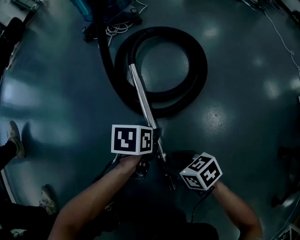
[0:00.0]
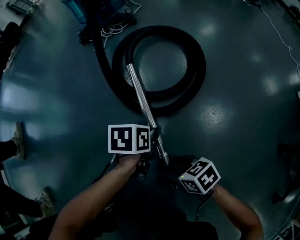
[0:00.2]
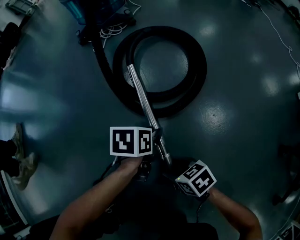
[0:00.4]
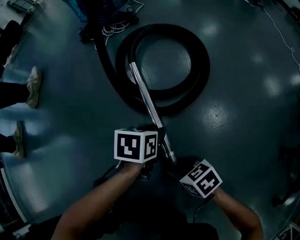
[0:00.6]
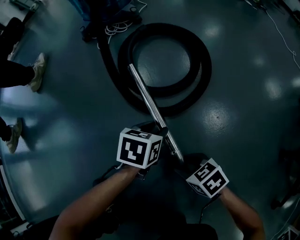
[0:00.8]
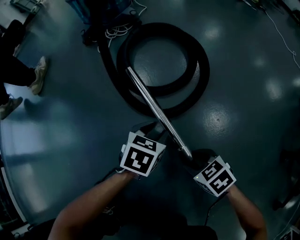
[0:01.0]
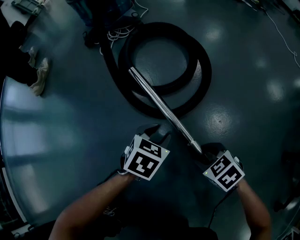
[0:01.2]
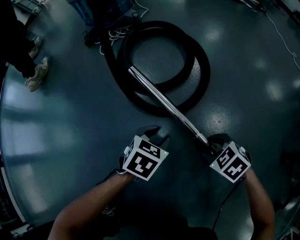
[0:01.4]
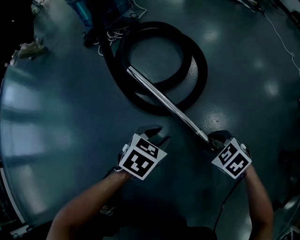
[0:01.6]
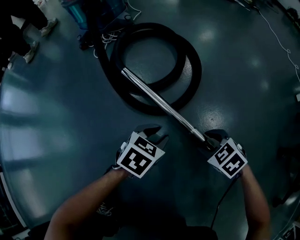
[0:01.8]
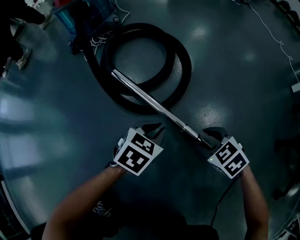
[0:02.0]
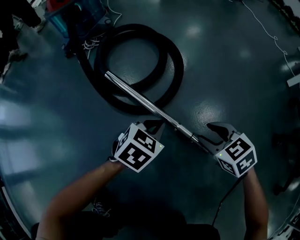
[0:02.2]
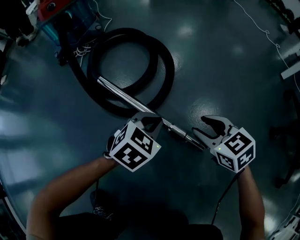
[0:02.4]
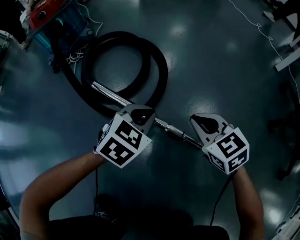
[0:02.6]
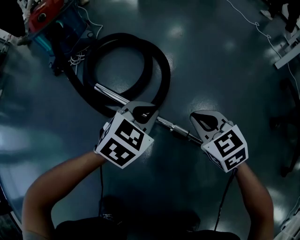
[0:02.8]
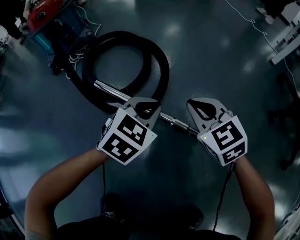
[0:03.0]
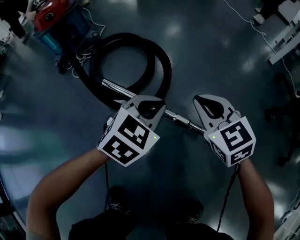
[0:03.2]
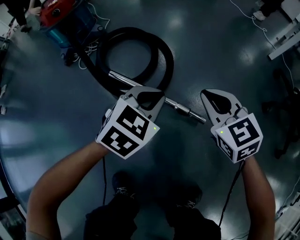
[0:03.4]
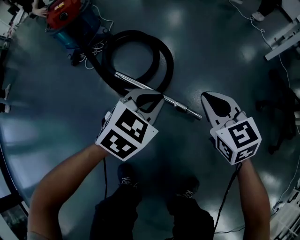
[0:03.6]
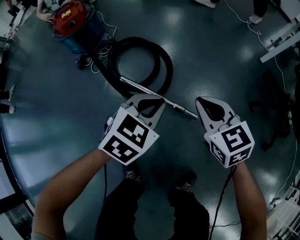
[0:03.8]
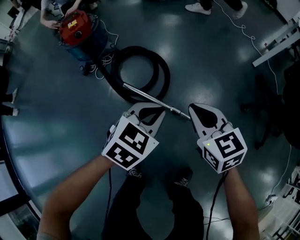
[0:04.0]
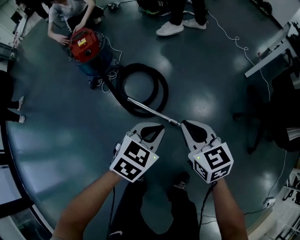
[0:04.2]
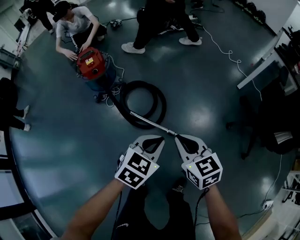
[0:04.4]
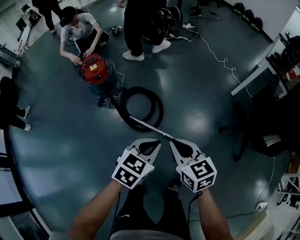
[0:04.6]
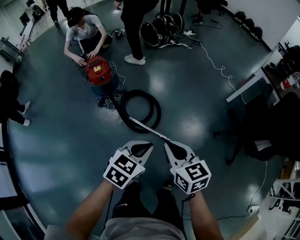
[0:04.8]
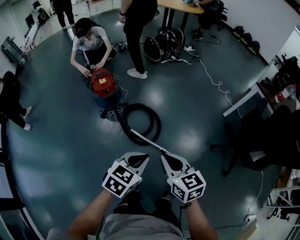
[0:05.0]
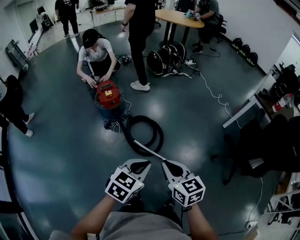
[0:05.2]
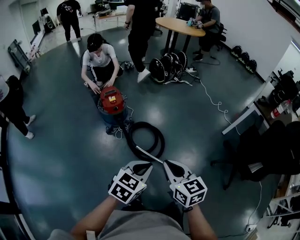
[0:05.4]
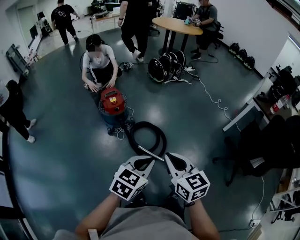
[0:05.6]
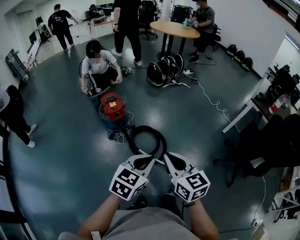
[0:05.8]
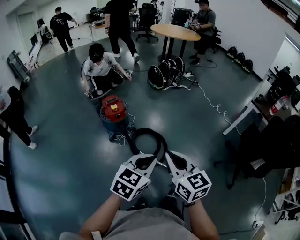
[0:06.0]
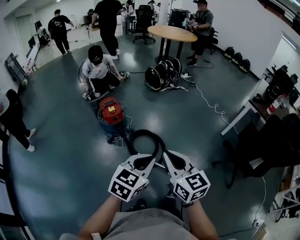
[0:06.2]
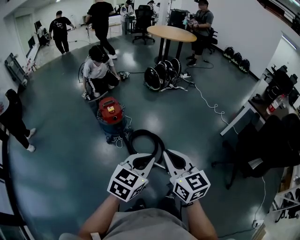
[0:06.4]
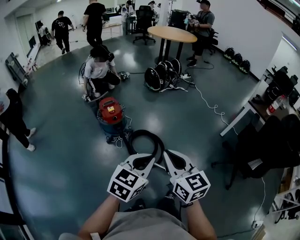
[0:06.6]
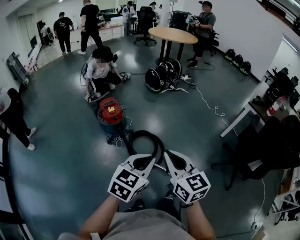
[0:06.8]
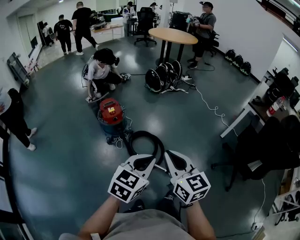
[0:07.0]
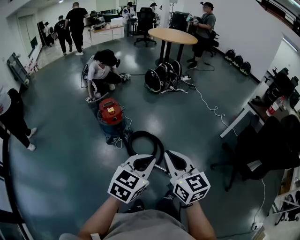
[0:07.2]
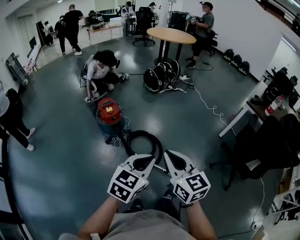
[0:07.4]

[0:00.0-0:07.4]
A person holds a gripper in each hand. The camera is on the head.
0:00.0 to 0:01.4: The right gripper shifts by approximately 15 cm, and rotates roughly 40 degrees. Meanwhile the left gripper swivels roughly 40 degrees.
0:01.4 to 0:03.0: The two grippers go roughly 10 cm upward. The right gripper angles its fingers upward, by approximately 30 degrees, and closes up. The left gripper rotates about 40 degrees, and closes up.
0:03.0 to 0:04.4: Both grippers travel together upward, roughly 60 cm. The right gripper rotates about 20 degrees.
0:04.4 to 0:06.0: Both grippers move upward and to the left, roughly 35 cm.
0:06.0 to 0:07.4: The grippers stay close to where they were, moving slightly.

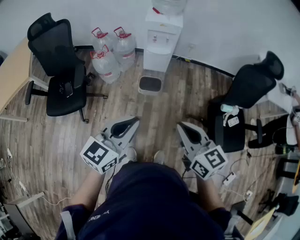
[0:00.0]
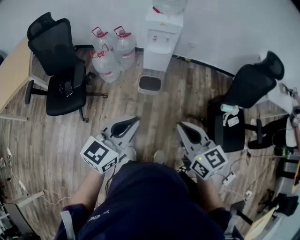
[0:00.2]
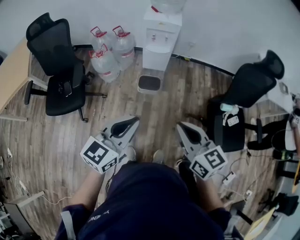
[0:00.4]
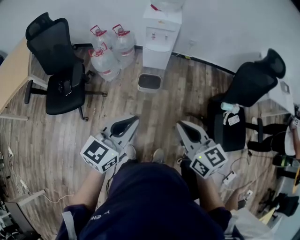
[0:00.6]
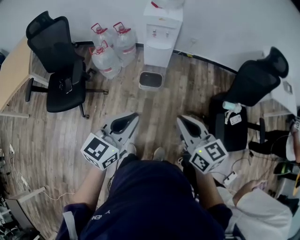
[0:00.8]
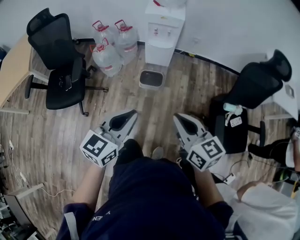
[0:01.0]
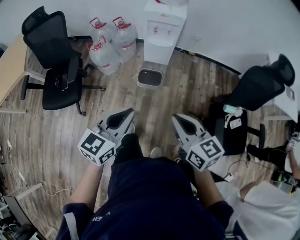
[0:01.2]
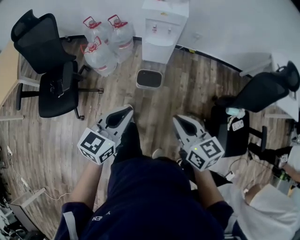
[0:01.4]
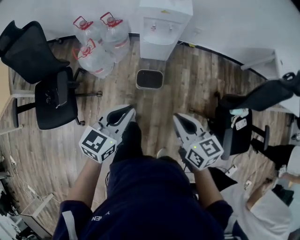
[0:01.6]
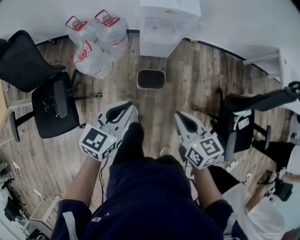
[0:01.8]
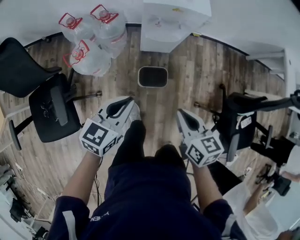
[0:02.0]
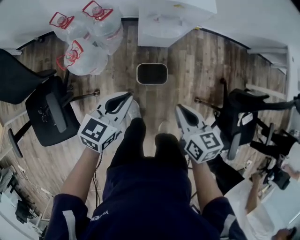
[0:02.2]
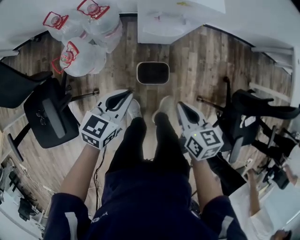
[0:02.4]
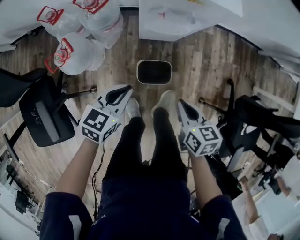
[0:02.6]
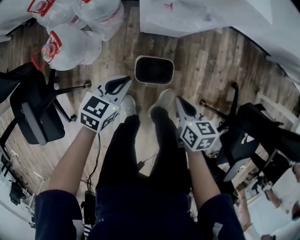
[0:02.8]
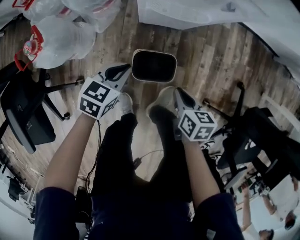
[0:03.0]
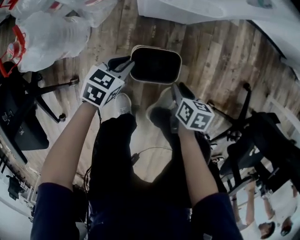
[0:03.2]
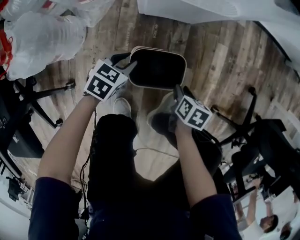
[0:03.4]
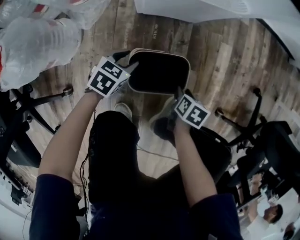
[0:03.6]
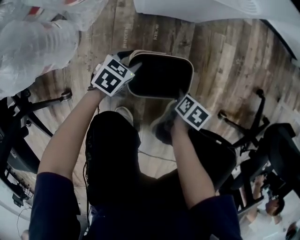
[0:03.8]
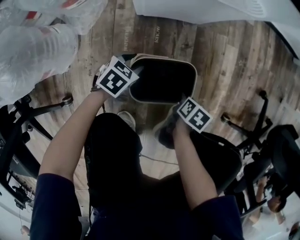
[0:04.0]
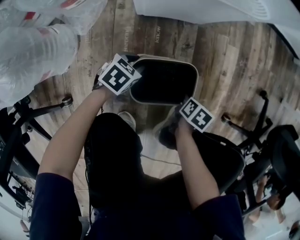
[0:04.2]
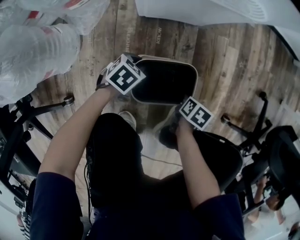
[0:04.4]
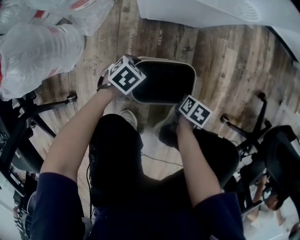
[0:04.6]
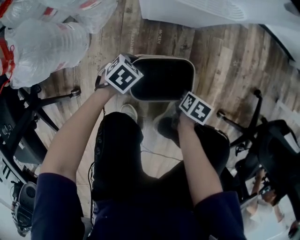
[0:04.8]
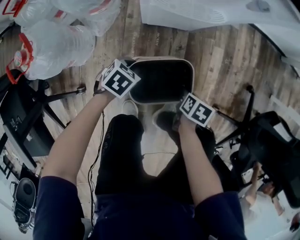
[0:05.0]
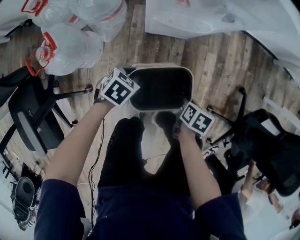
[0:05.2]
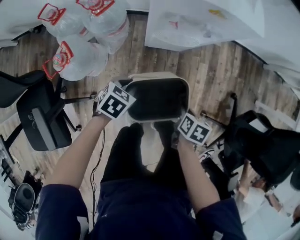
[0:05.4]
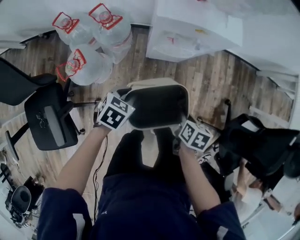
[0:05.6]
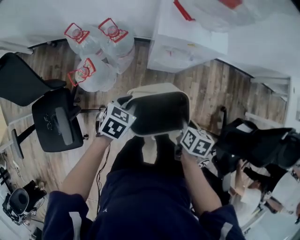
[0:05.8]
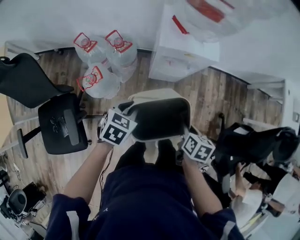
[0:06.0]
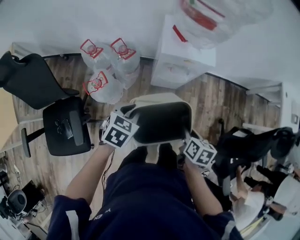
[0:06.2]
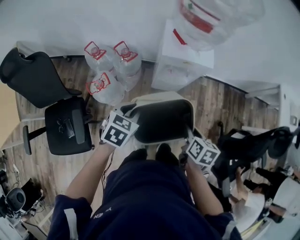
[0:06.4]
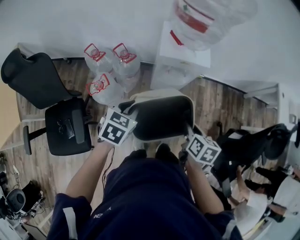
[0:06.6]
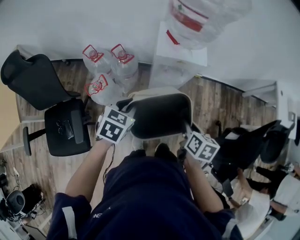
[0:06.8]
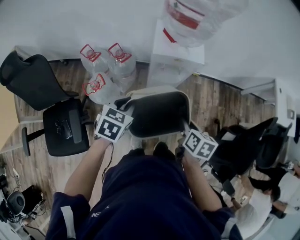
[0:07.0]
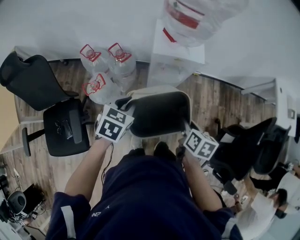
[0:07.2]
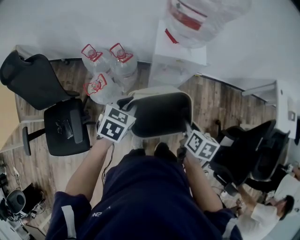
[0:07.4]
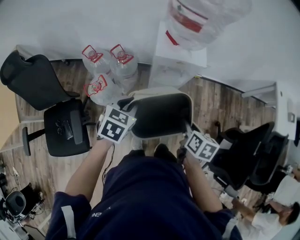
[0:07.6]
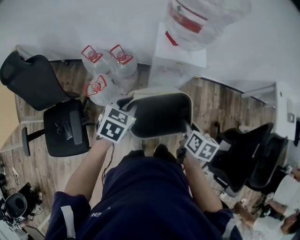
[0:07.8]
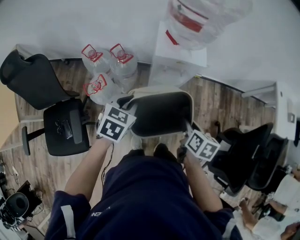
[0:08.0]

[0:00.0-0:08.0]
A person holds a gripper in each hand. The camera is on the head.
0:00.0 to 0:01.6: The grippers both shift forward and downward by some 30 cm.
0:01.6 to 0:03.2: Both grippers move downward and forward, some 70 cm. The right gripper angles its fingers downward, by roughly 40 degrees, and opens up. The left gripper turns by roughly 30 degrees.
0:03.2 to 0:04.8: Both grippers move downward, roughly 15 cm. The right gripper rotates approximately 20 degrees. The left gripper swivels about 20 degrees, and opens, then closes once more.
0:04.8 to 0:06.4: The grippers both shift upward by approximately 70 cm. The left gripper changes its angle by about 30 degrees. The right gripper swivels approximately 30 degrees.
0:06.4 to 0:08.0: The left gripper changes place by some 5 cm.

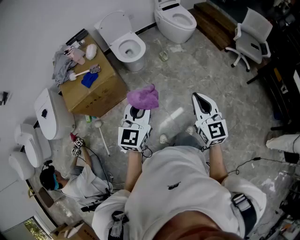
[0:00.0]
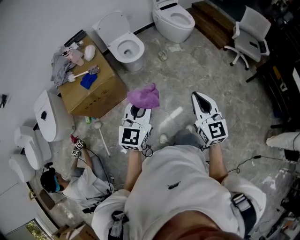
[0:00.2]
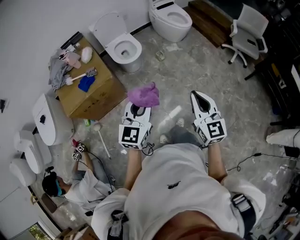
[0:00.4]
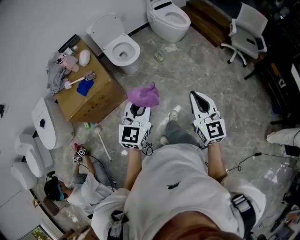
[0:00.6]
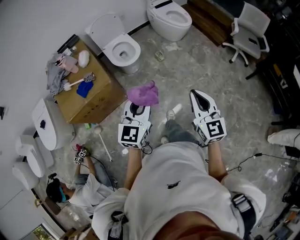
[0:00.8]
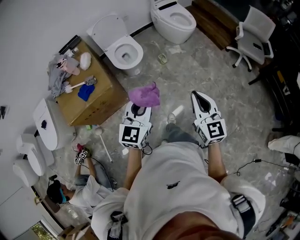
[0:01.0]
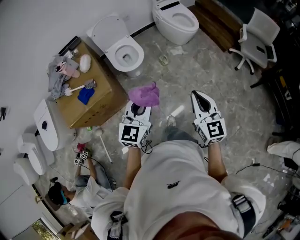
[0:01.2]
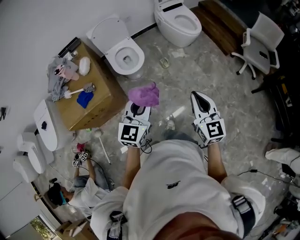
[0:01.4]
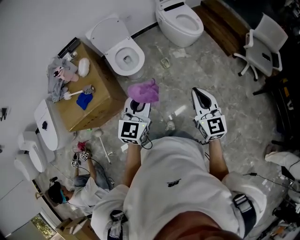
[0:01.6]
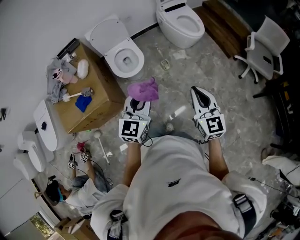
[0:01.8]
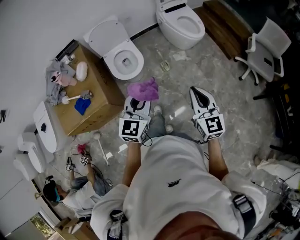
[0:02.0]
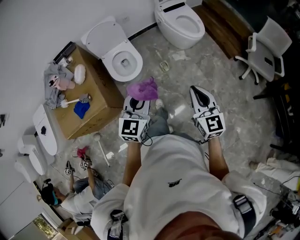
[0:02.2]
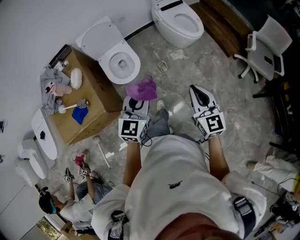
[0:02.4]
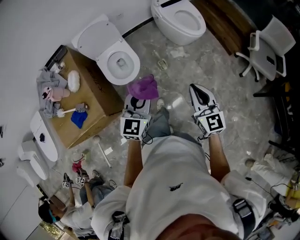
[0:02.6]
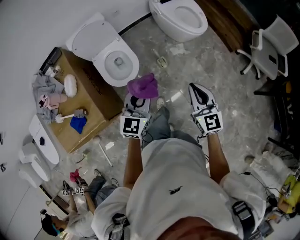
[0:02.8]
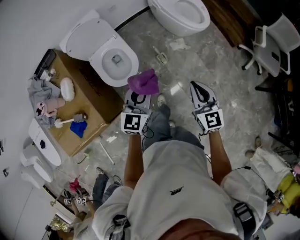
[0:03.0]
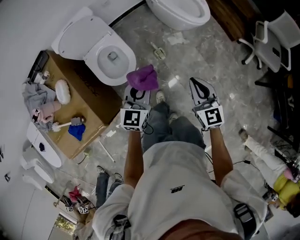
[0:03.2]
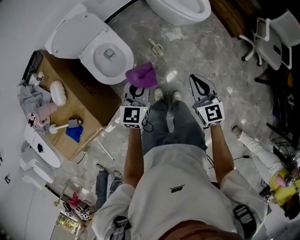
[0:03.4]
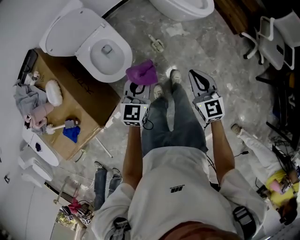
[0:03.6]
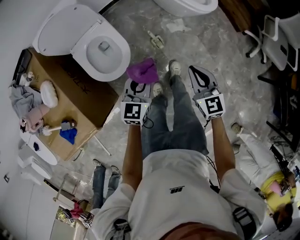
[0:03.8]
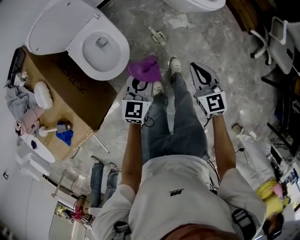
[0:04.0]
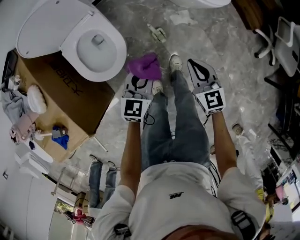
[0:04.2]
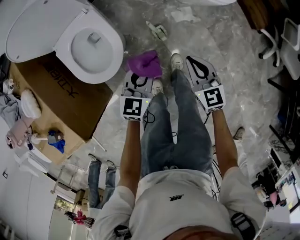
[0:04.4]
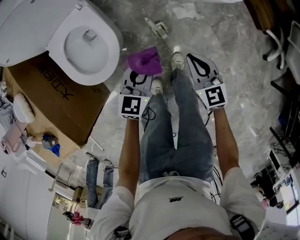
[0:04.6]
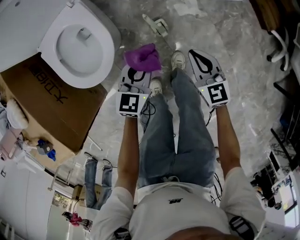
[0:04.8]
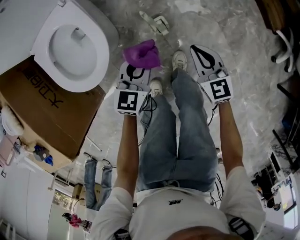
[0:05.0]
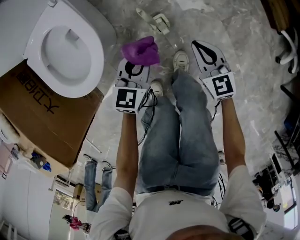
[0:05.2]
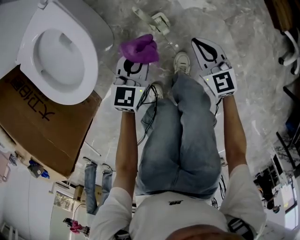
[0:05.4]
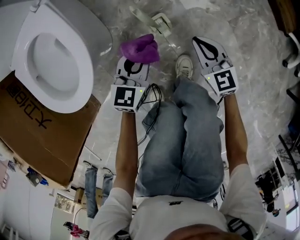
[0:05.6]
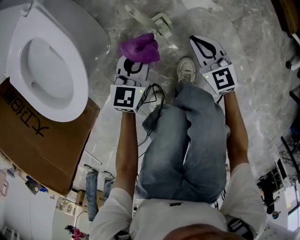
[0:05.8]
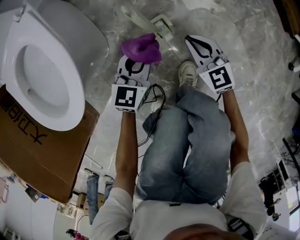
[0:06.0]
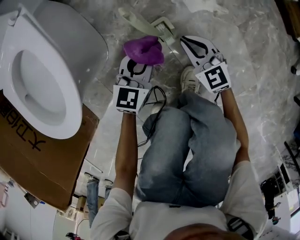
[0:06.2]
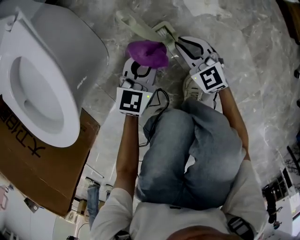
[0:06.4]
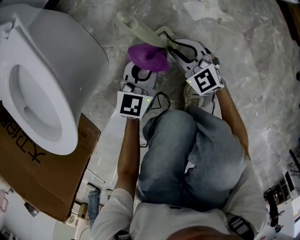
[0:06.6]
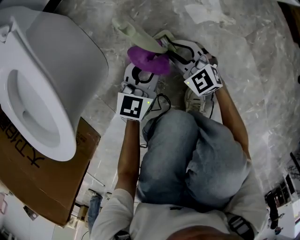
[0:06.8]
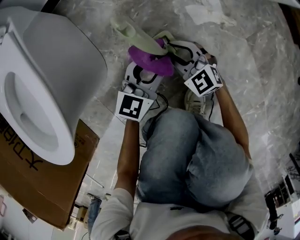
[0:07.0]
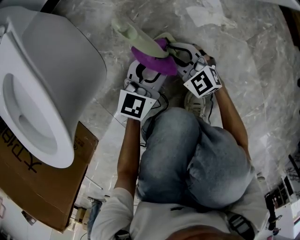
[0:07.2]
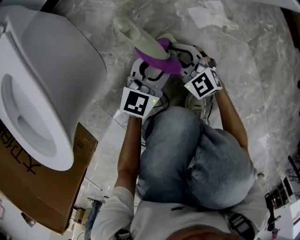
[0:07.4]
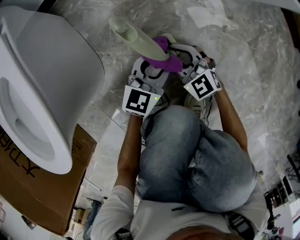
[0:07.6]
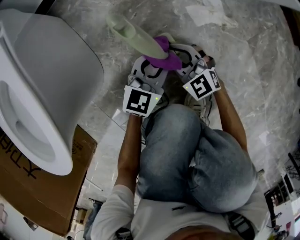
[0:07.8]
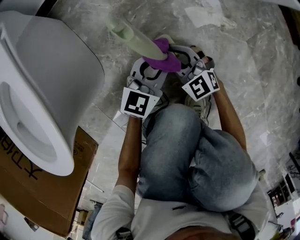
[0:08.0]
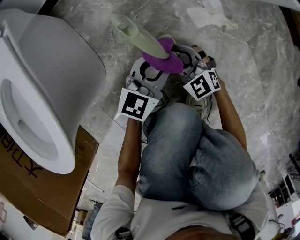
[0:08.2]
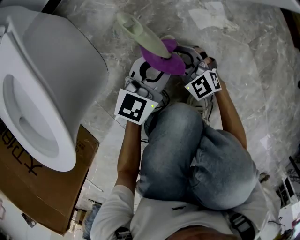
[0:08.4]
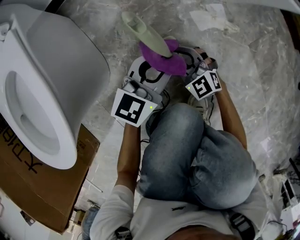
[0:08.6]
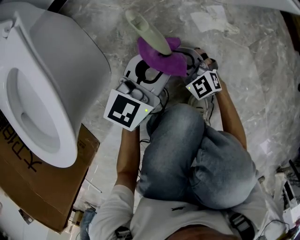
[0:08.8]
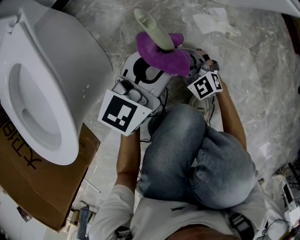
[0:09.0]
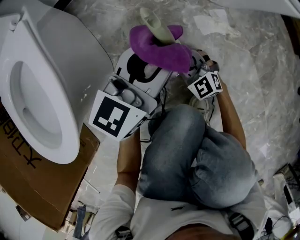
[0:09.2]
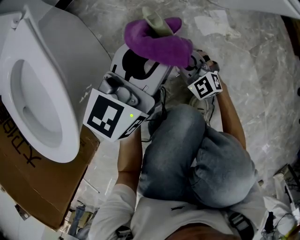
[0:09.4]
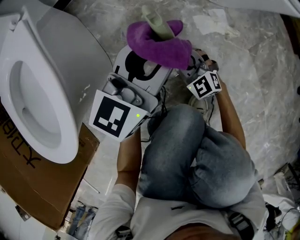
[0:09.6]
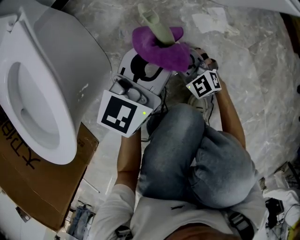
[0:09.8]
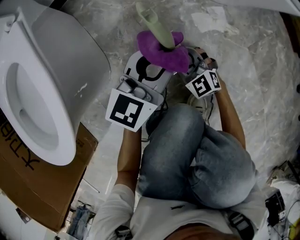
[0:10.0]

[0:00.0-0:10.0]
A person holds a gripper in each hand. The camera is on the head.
0:00.0 to 0:01.4: The grippers both shift forward by about 25 cm.
0:01.4 to 0:02.8: The two grippers go roughly 30 cm forward.
0:02.8 to 0:04.2: Both grippers travel together downward and forward, approximately 40 cm.
0:04.2 to 0:05.8: The grippers both shift downward by roughly 40 cm.
0:05.8 to 0:07.2: The right gripper is displaced downward and to the left by about 20 cm, rotates roughly 20 degrees, and opens up; the left gripper travels downward and to the right by roughly 15 cm, and opens up.
0:07.2 to 0:08.6: The left gripper moves upward, approximately 5 cm.
